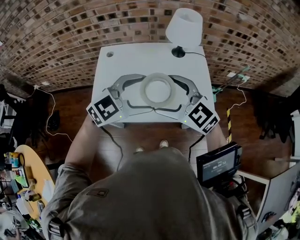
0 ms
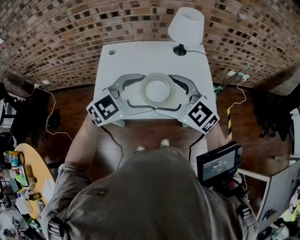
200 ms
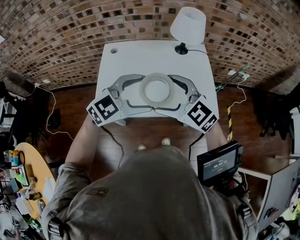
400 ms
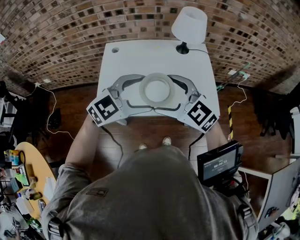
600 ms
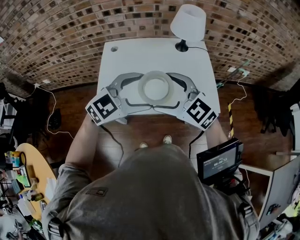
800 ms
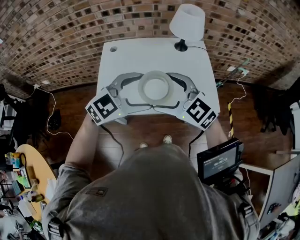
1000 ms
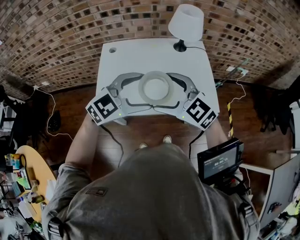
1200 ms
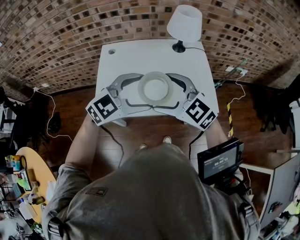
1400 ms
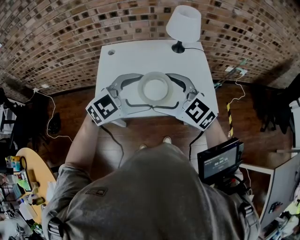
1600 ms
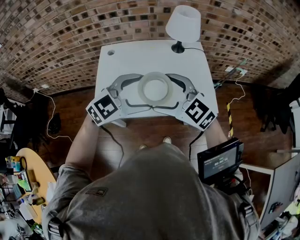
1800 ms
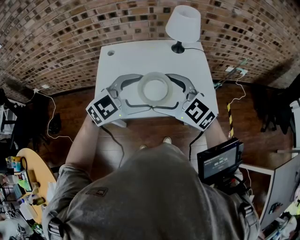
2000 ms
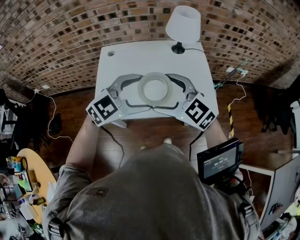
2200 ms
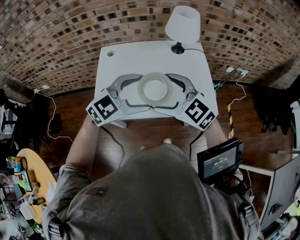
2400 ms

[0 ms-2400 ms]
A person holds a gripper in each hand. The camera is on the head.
0 ms to 1200 ms: The right gripper ends up some 5 cm from where it was. The left gripper ends up about 5 cm from where it was.
1200 ms to 2400 ms: The grippers make only small movements.

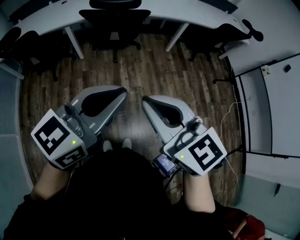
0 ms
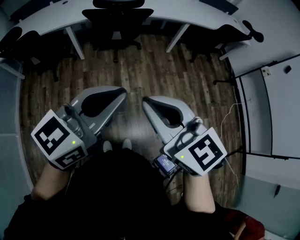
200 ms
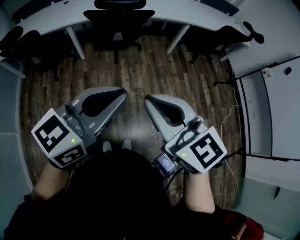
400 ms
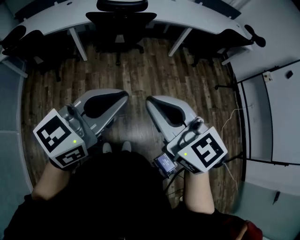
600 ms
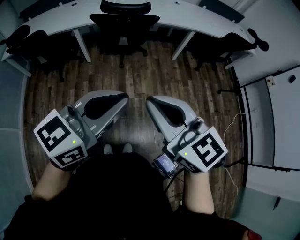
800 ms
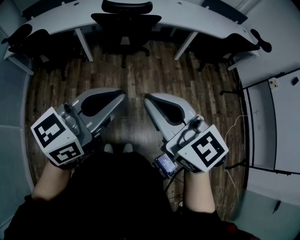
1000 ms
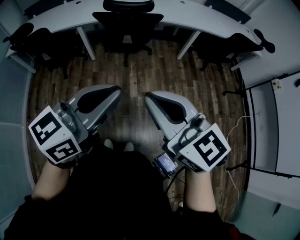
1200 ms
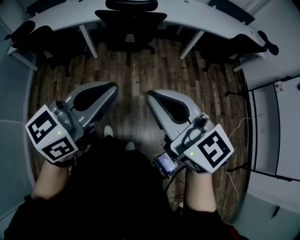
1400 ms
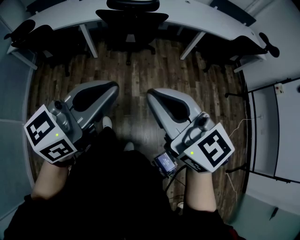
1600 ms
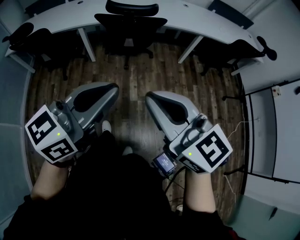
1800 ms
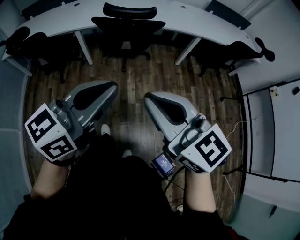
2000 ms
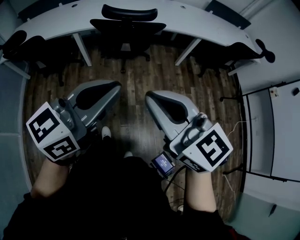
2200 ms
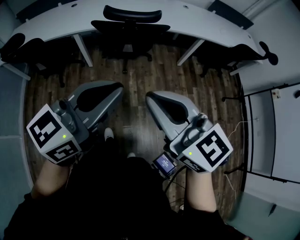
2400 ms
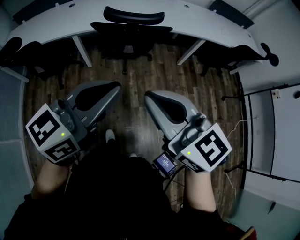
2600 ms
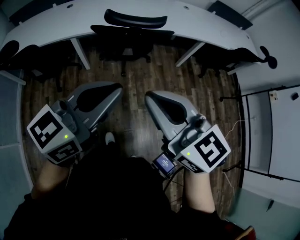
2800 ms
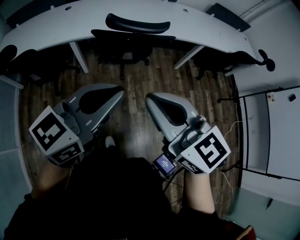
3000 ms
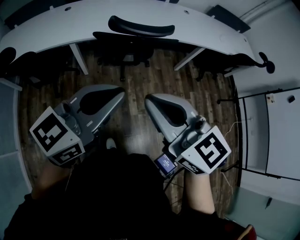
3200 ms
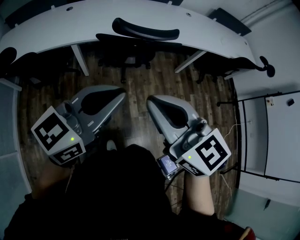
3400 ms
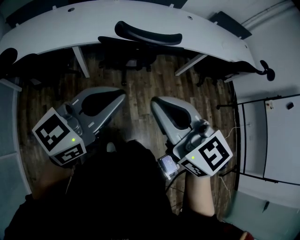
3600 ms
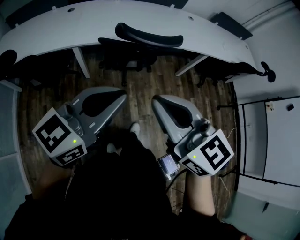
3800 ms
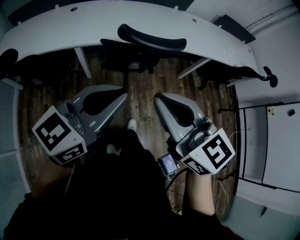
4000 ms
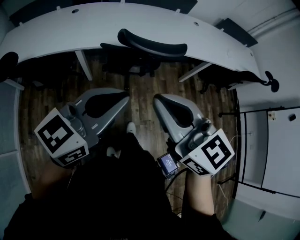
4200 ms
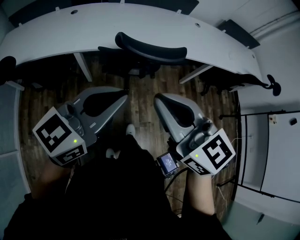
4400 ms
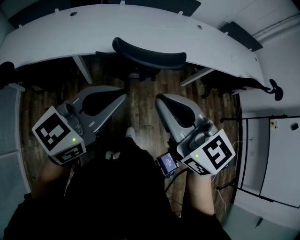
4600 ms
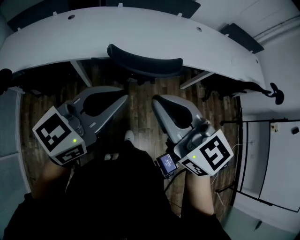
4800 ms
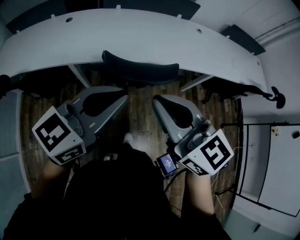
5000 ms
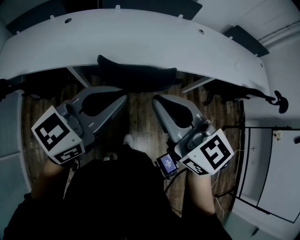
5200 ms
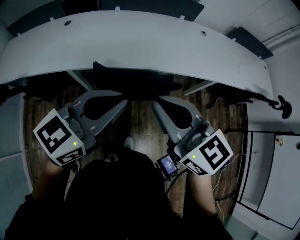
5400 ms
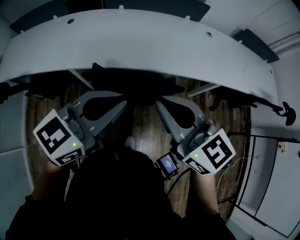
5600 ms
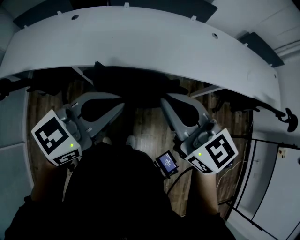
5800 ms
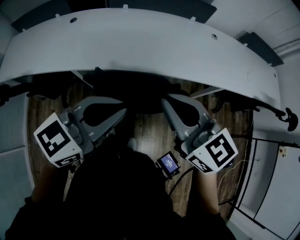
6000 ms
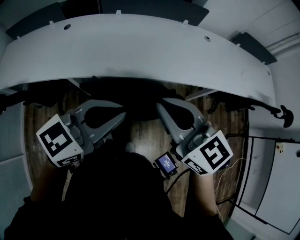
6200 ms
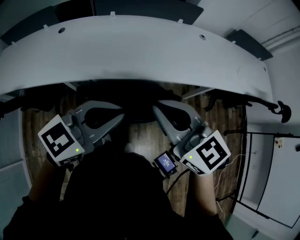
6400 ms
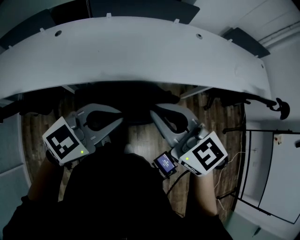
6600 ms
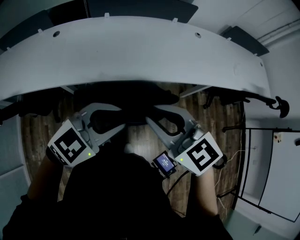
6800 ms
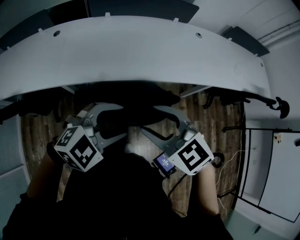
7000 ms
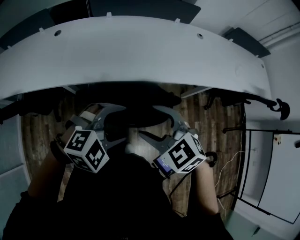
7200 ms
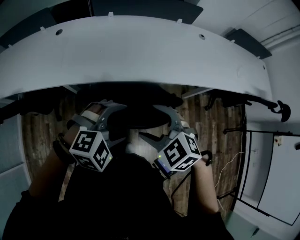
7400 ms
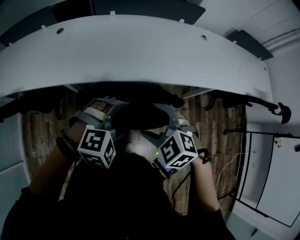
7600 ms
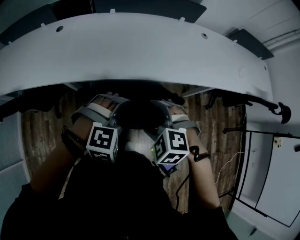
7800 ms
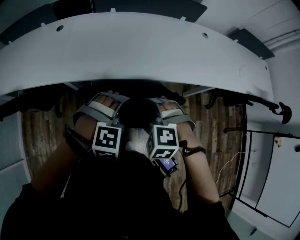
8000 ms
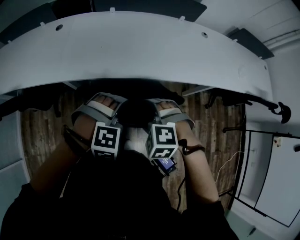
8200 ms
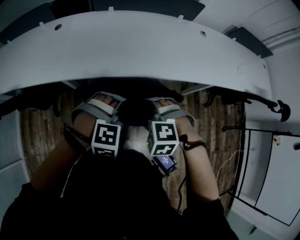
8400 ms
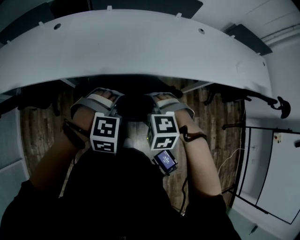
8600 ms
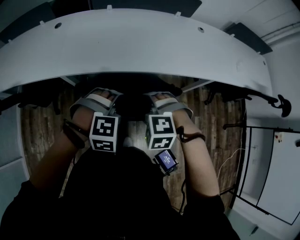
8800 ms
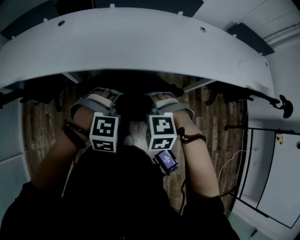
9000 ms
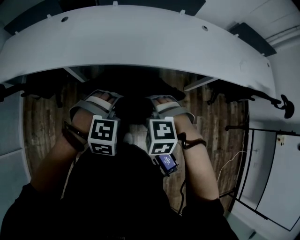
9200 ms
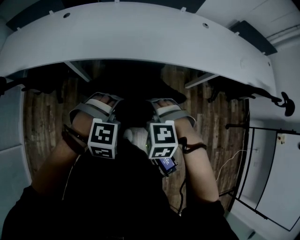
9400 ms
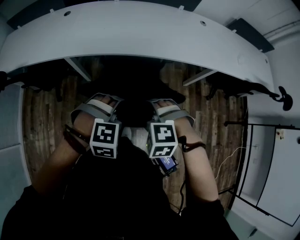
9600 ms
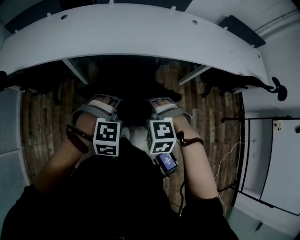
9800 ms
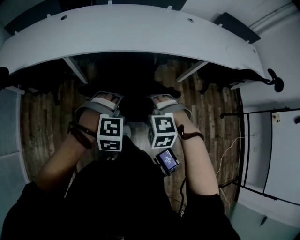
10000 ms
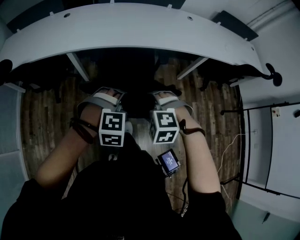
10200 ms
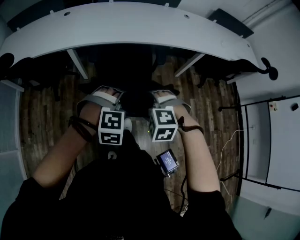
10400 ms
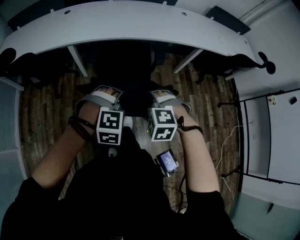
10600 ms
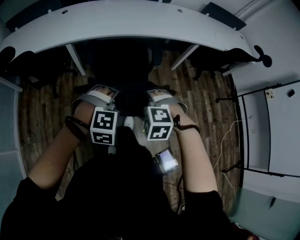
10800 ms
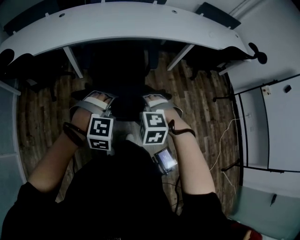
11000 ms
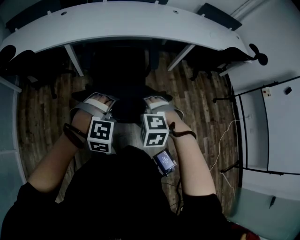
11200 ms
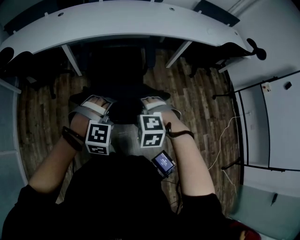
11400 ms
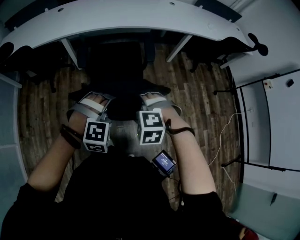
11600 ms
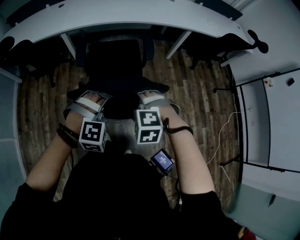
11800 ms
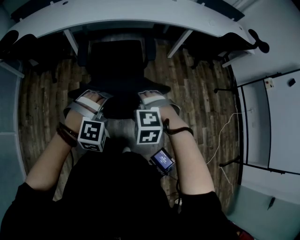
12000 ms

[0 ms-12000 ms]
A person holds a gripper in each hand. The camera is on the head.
0 ms to 1600 ms: The grippers make only small movements.
1600 ms to 3000 ms: The two grippers go some 30 cm forward and to the left.
3000 ms to 4400 ms: The two grippers go about 15 cm forward.
4400 ms to 6000 ms: The grippers both shift forward and to the right by approximately 25 cm.
6000 ms to 7600 ms: The grippers both shift downward by about 15 cm. The right gripper angles its fingers downward, by some 40 degrees, and opens up; the left gripper tilts its fingers some 40 degrees downward, and opens up.
7600 ms to 9000 ms: The two grippers go some 5 cm downward. The right gripper rotates about 30 degrees.
9000 ms to 10400 ms: Both grippers travel together backward, approximately 30 cm.
10400 ms to 12000 ms: The two grippers go roughly 25 cm backward.

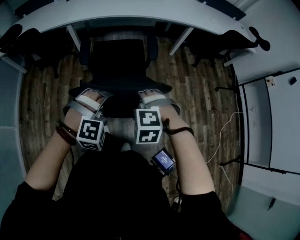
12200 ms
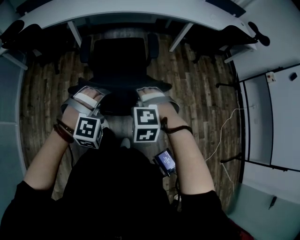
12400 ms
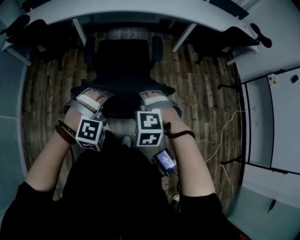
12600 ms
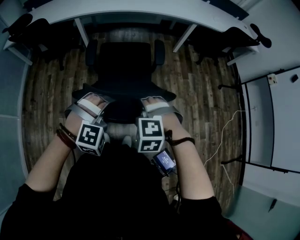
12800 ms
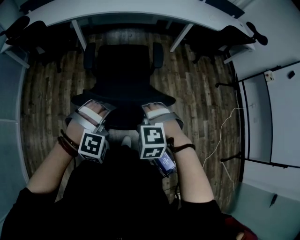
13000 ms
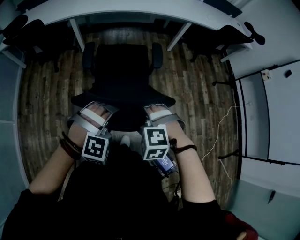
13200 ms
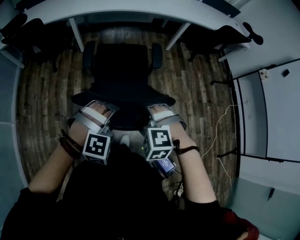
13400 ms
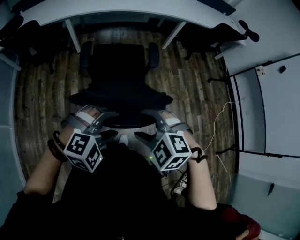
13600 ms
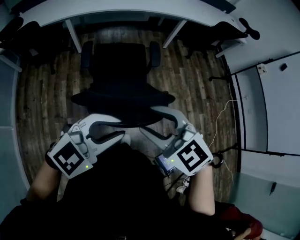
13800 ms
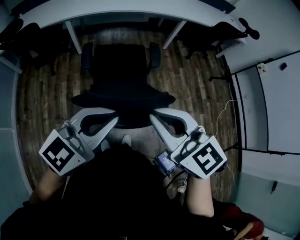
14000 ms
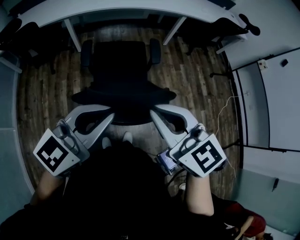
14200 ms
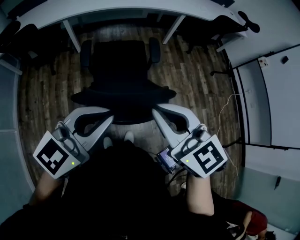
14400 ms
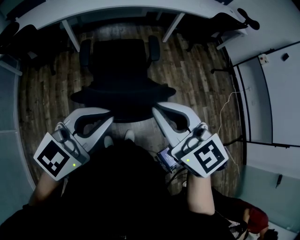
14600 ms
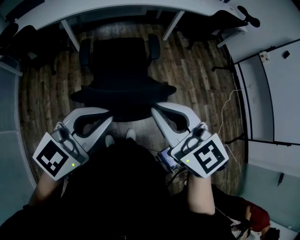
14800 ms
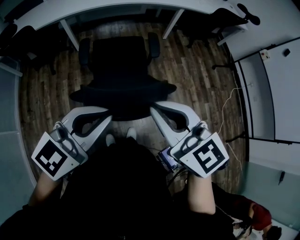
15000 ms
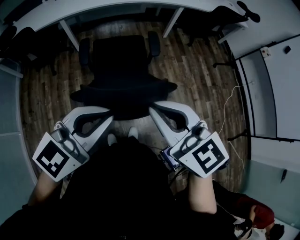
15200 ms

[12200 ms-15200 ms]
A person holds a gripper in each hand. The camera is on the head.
12200 ms to 13800 ms: The right gripper heads upward and backward, covering approximately 25 cm, and tips its fingers upward by about 30 degrees; the left gripper goes roughly 25 cm backward and upward, and swivels approximately 60 degrees.
13800 ms to 15200 ms: The right gripper ends up some 5 cm from where it was, rotates some 30 degrees, and closes its fingers.

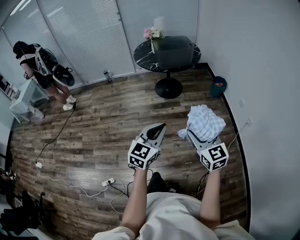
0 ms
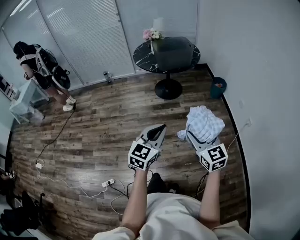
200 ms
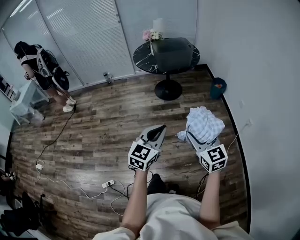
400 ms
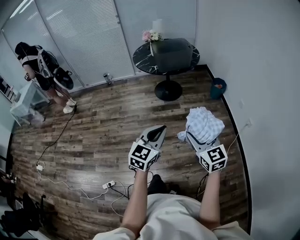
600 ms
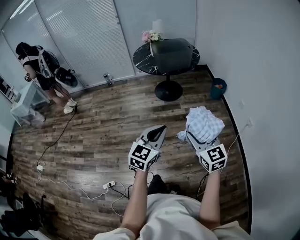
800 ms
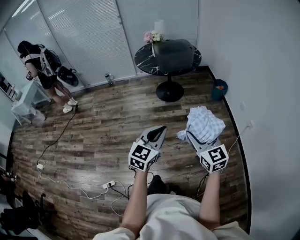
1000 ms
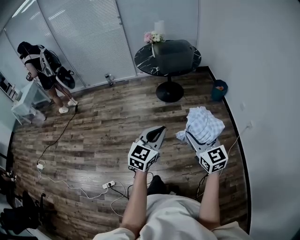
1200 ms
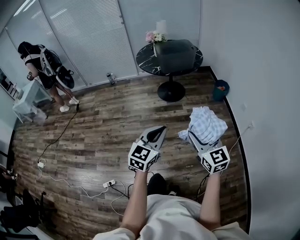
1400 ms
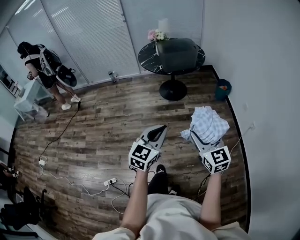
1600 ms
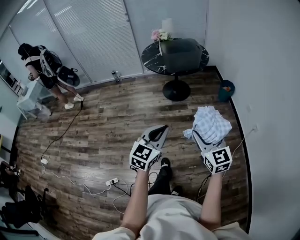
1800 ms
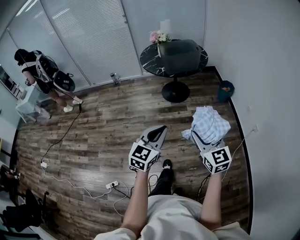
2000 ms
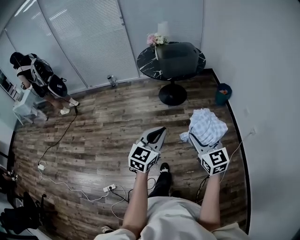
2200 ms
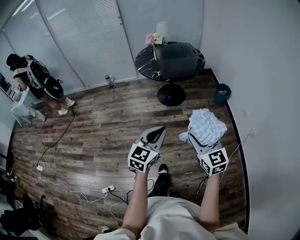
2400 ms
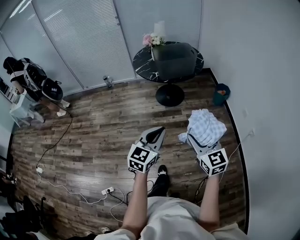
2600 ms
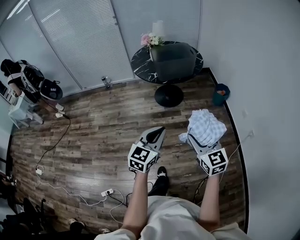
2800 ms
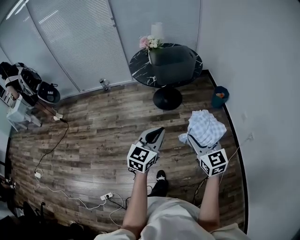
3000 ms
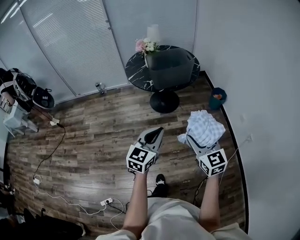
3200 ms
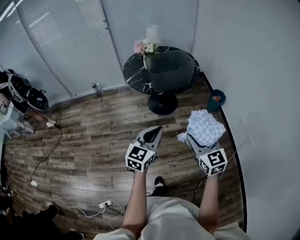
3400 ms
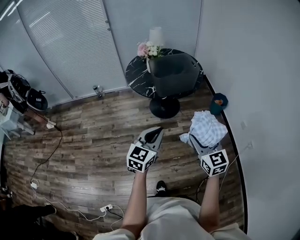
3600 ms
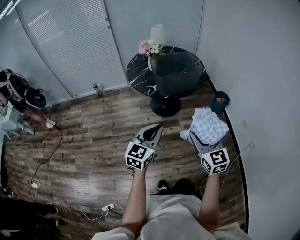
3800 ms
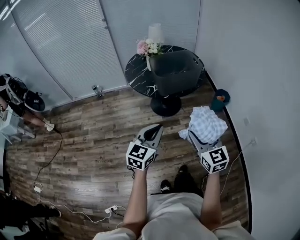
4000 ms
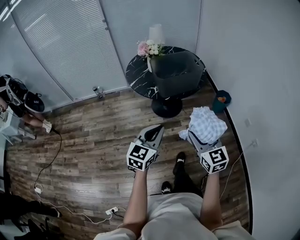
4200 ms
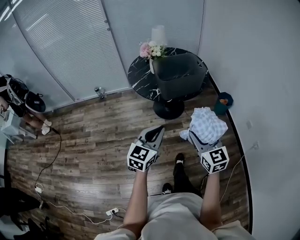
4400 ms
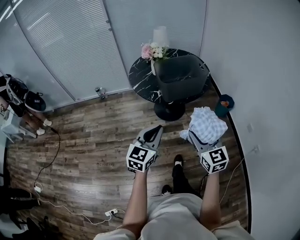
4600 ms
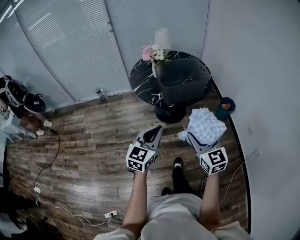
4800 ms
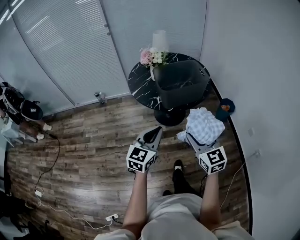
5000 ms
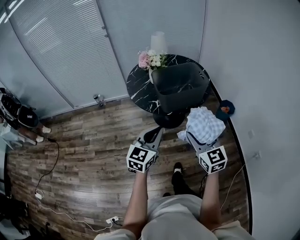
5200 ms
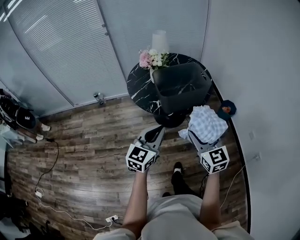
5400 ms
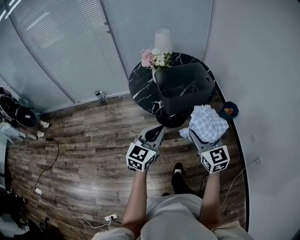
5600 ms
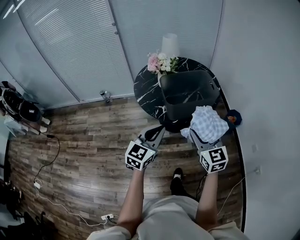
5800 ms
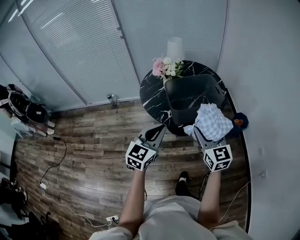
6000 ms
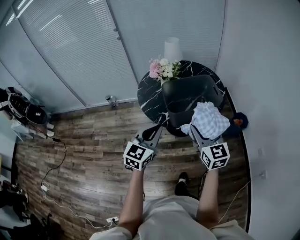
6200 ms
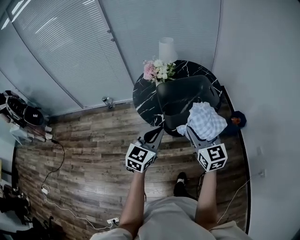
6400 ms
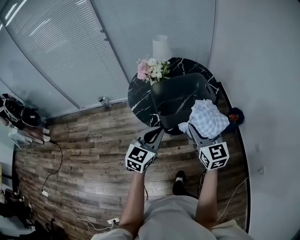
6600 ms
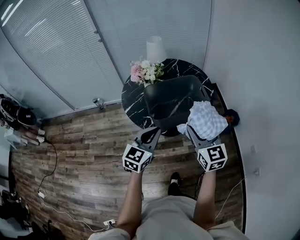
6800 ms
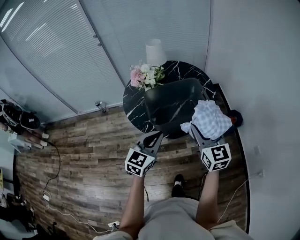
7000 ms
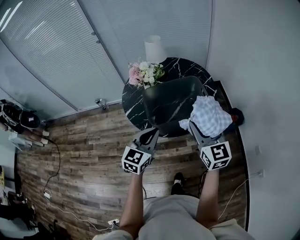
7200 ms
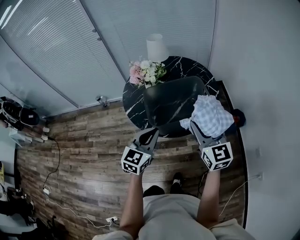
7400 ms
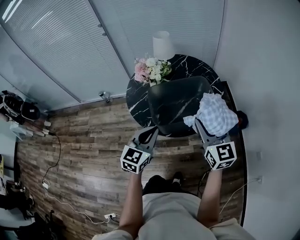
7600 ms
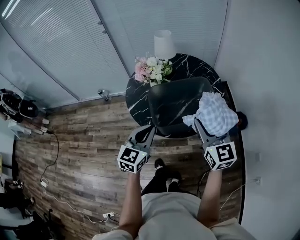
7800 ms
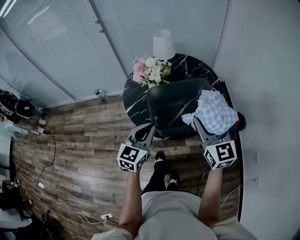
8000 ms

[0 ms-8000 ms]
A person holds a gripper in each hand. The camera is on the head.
0 ms to 1600 ms: The grippers make only small movements.
1600 ms to 3200 ms: Both grippers travel together forward, about 20 cm.
3200 ms to 4800 ms: The two grippers go roughly 20 cm forward and to the left.
4800 ms to 6400 ms: The grippers both shift forward by some 20 cm.
6400 ms to 8000 ms: Both grippers travel together forward, some 15 cm.
